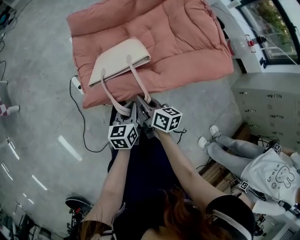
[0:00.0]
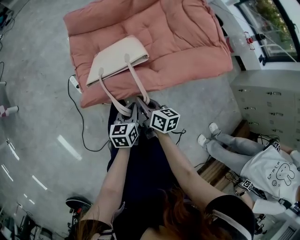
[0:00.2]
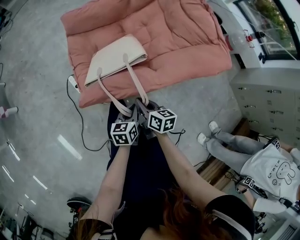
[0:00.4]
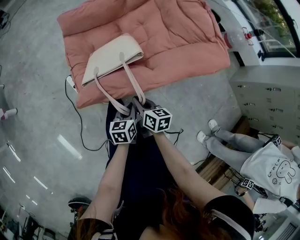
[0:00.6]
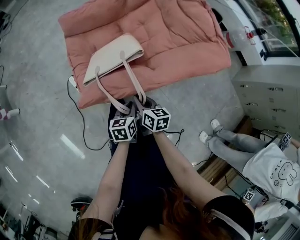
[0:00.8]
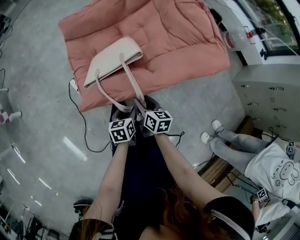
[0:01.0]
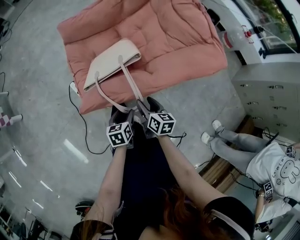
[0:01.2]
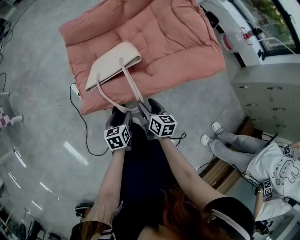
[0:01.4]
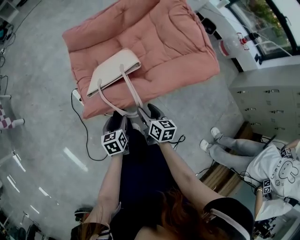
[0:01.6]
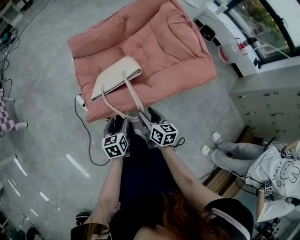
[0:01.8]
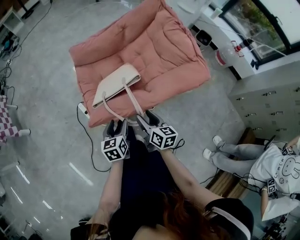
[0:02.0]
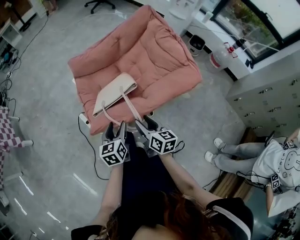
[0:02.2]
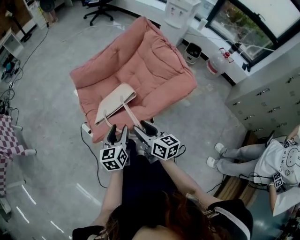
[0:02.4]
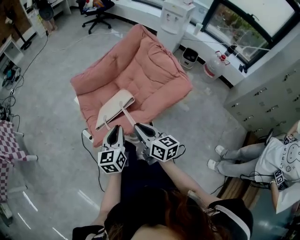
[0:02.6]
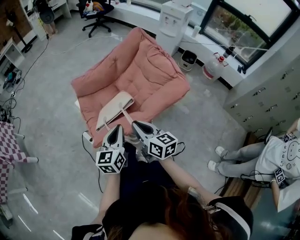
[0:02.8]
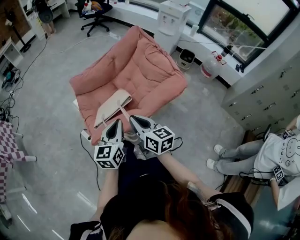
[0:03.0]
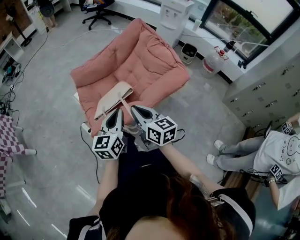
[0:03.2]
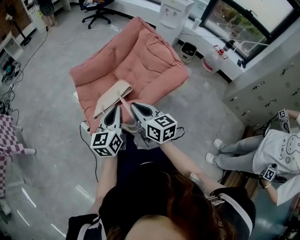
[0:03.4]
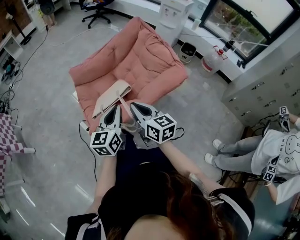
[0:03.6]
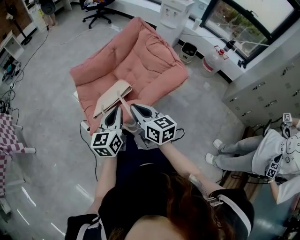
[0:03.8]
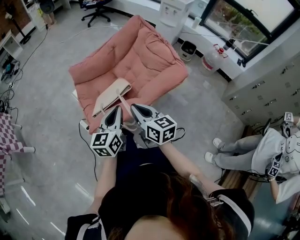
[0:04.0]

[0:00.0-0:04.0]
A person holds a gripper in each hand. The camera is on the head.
0:00.0 to 0:01.4: The left gripper shifts roughly 5 cm downward, and opens up, while the right gripper shifts roughly 5 cm to the right, and opens.
0:01.4 to 0:02.6: Both grippers travel together upward, approximately 30 cm. The right gripper turns by some 20 degrees, and closes up. The left gripper changes its angle by some 30 degrees, and closes its fingers.
0:02.6 to 0:04.0: The left gripper shifts by some 5 cm.

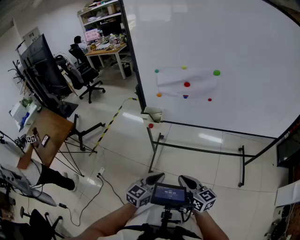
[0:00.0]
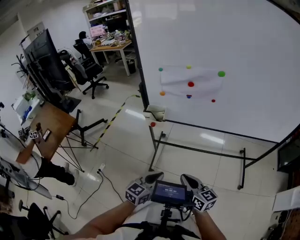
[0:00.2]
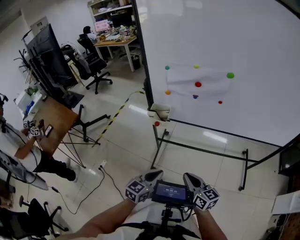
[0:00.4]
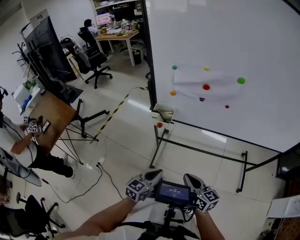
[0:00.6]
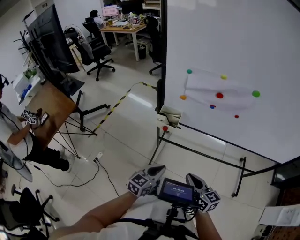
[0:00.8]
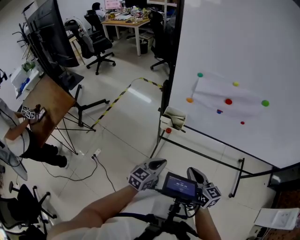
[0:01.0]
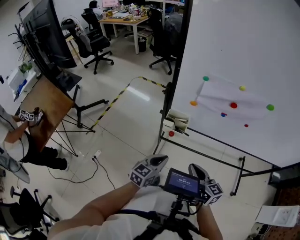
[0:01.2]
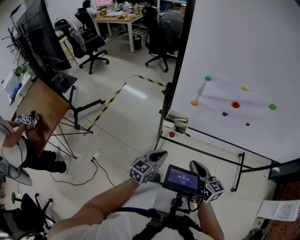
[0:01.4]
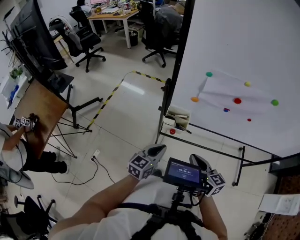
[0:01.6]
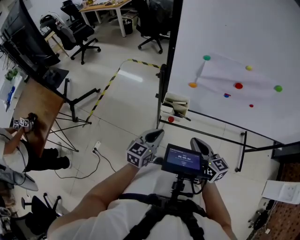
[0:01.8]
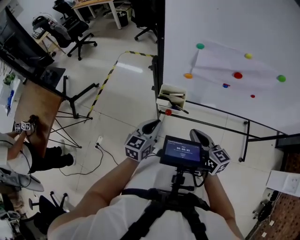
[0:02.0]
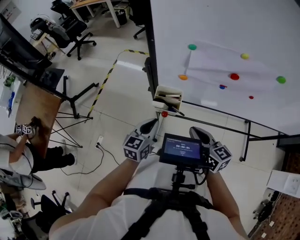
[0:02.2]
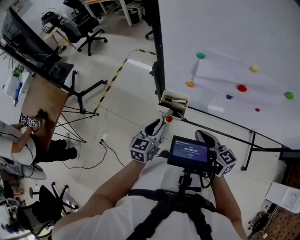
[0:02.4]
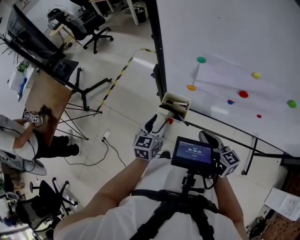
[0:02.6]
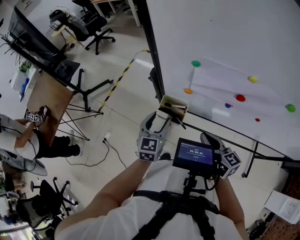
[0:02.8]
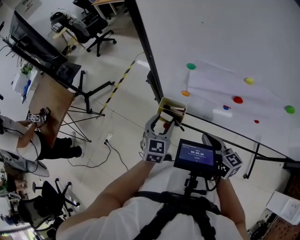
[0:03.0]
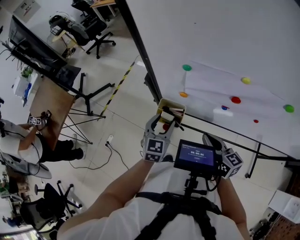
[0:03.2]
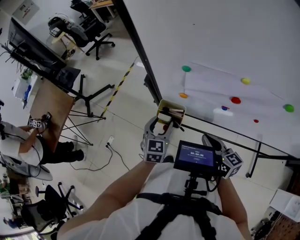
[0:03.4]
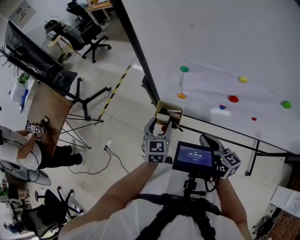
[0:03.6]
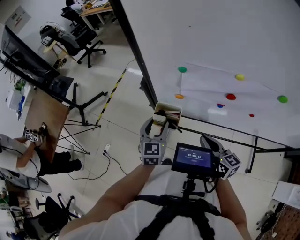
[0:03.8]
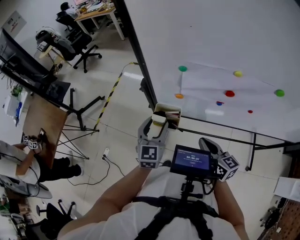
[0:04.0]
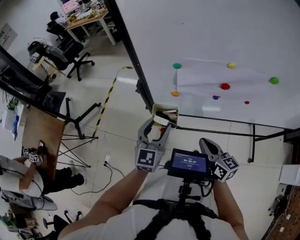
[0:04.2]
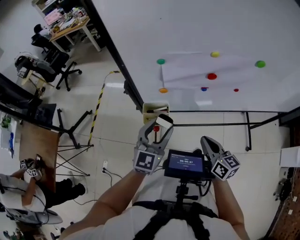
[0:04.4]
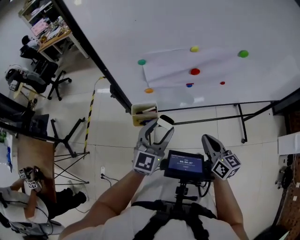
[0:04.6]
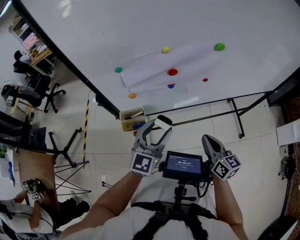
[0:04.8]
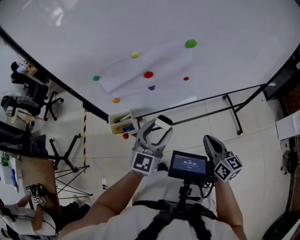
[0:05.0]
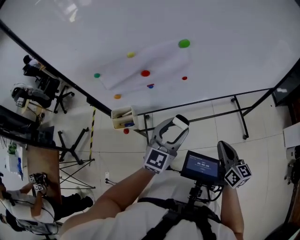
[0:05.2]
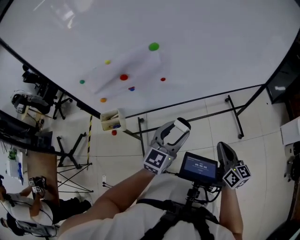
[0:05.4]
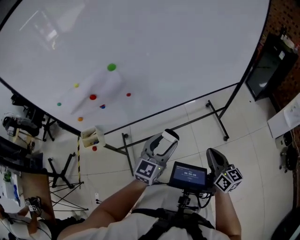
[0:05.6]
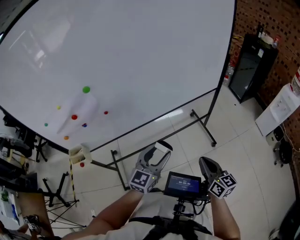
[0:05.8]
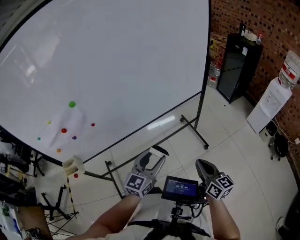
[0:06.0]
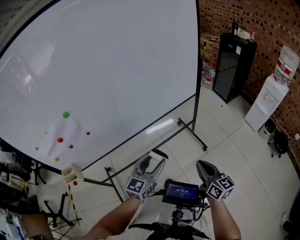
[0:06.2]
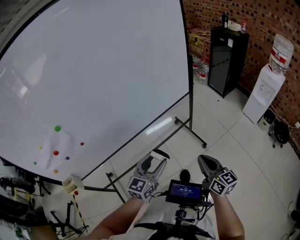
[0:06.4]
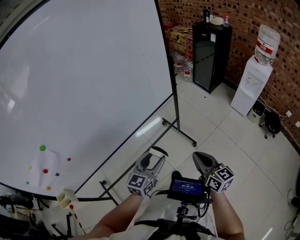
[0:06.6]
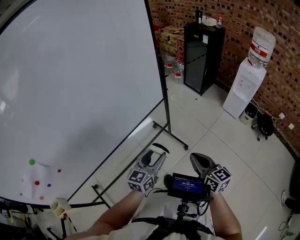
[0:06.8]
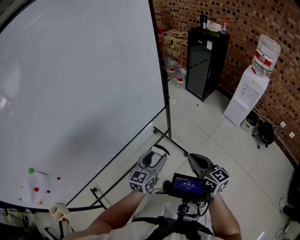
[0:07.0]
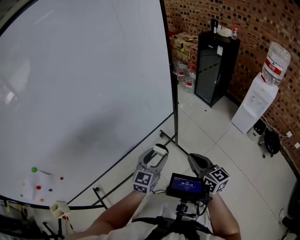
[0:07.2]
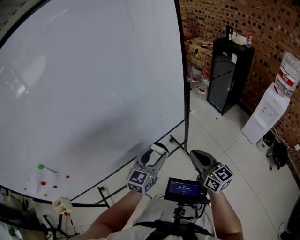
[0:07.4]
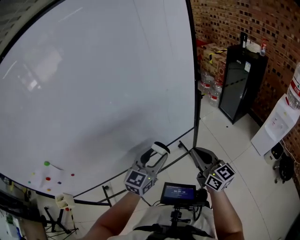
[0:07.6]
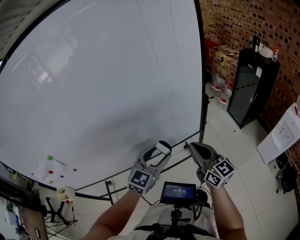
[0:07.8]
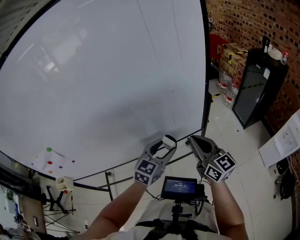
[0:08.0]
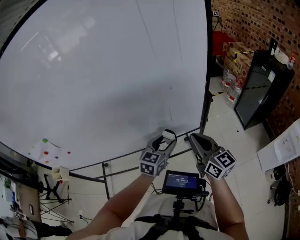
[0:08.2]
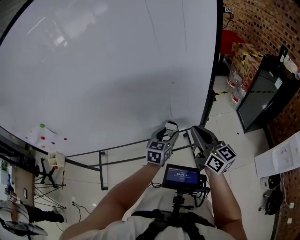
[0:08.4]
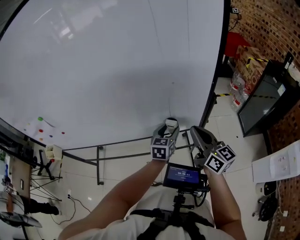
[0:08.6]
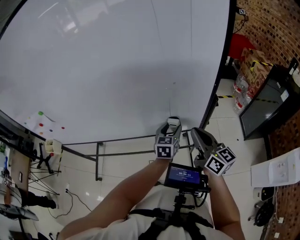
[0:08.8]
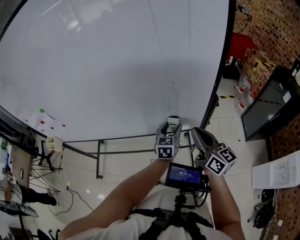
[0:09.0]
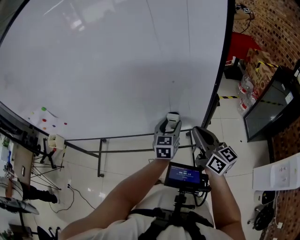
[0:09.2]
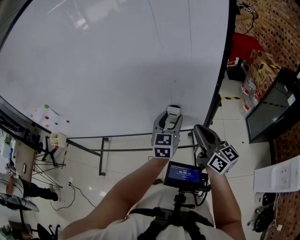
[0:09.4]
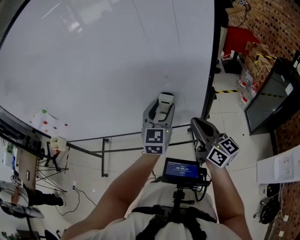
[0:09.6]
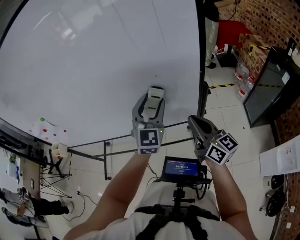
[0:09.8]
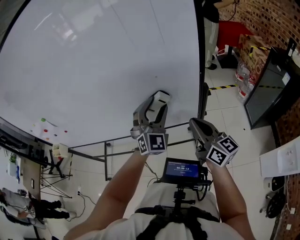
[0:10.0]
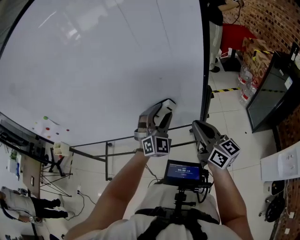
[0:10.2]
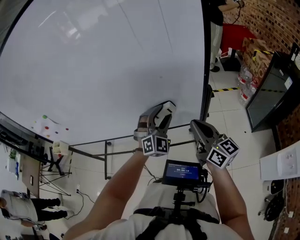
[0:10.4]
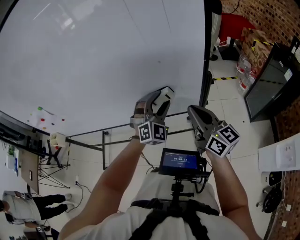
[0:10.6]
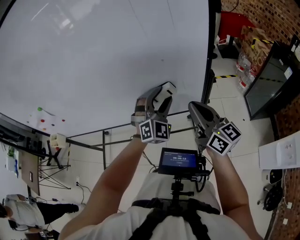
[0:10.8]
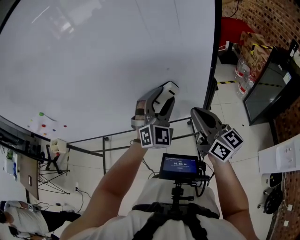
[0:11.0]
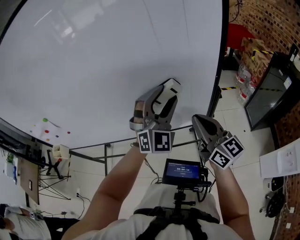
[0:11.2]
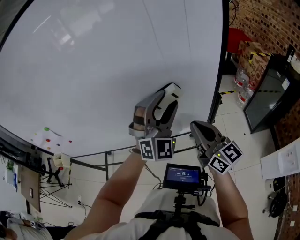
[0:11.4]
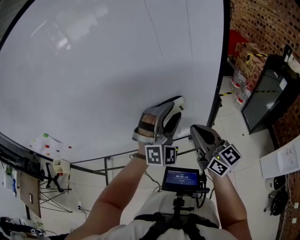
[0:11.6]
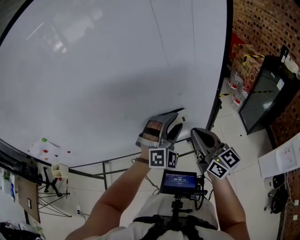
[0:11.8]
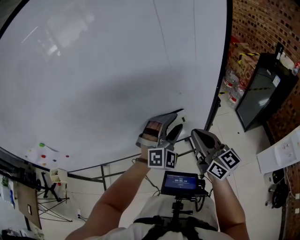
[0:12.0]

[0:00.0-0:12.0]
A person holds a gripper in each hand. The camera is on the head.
0:00.0 to 0:01.6: Both grippers move forward and to the left, roughly 30 cm.
0:01.6 to 0:03.0: Both grippers move forward and to the right, roughly 15 cm. The left gripper turns by about 30 degrees, and opens up.
0:03.0 to 0:04.4: The right gripper moves some 10 cm, and rotates approximately 20 degrees, while the left gripper is displaced upward by about 10 cm, and turns by some 30 degrees.
0:04.4 to 0:06.0: Both grippers are carried some 70 cm. The right gripper changes its angle by roughly 30 degrees; the left gripper swivels roughly 40 degrees.
0:06.0 to 0:07.6: The left gripper is displaced forward and to the right by some 40 cm, while the right gripper is displaced forward by some 35 cm.
0:07.6 to 0:09.0: The right gripper ends up about 20 cm from where it was, and changes its angle by about 30 degrees. Meanwhile the left gripper changes place by some 25 cm, and swivels about 50 degrees.
0:09.0 to 0:10.4: The left gripper goes roughly 10 cm upward, and rolls clockwise, seen from behind, by about 60 degrees.
0:10.4 to 0:12.0: The left gripper heads upward, covering roughly 5 cm, and rotates roughly 20 degrees; the right gripper travels to the left by some 10 cm.

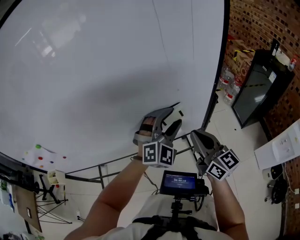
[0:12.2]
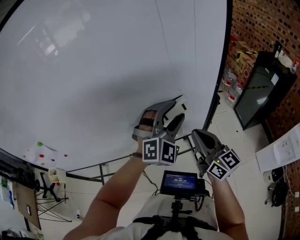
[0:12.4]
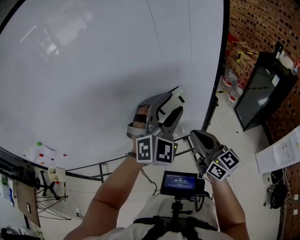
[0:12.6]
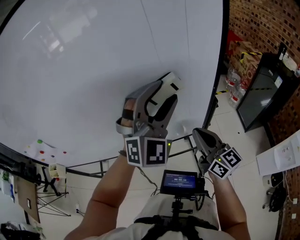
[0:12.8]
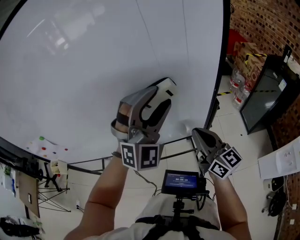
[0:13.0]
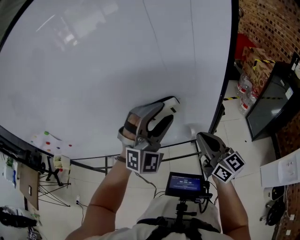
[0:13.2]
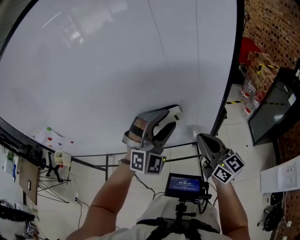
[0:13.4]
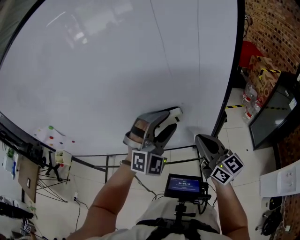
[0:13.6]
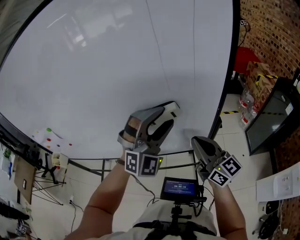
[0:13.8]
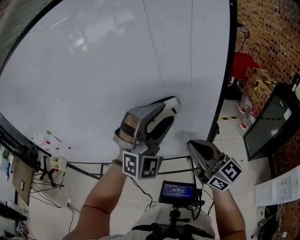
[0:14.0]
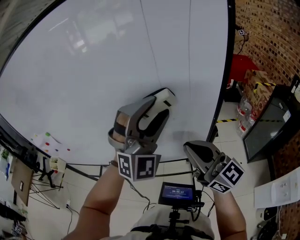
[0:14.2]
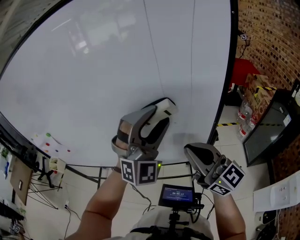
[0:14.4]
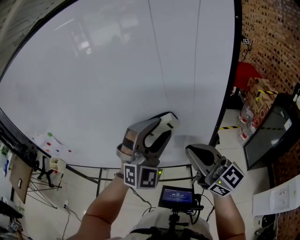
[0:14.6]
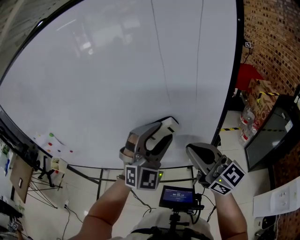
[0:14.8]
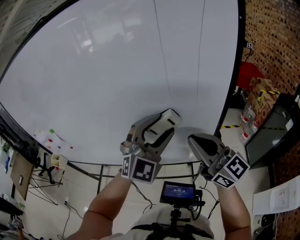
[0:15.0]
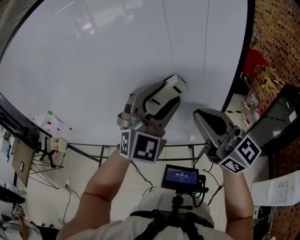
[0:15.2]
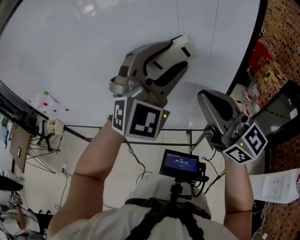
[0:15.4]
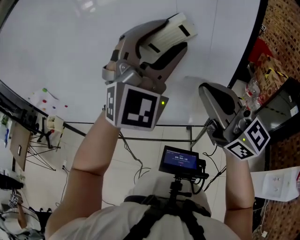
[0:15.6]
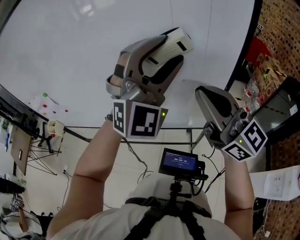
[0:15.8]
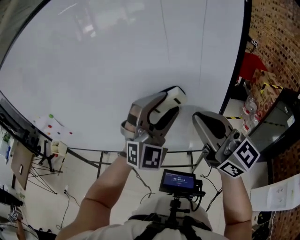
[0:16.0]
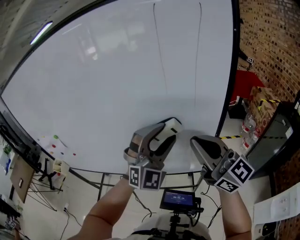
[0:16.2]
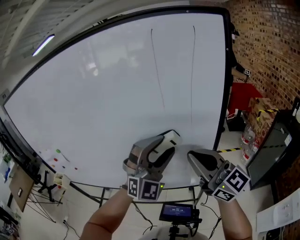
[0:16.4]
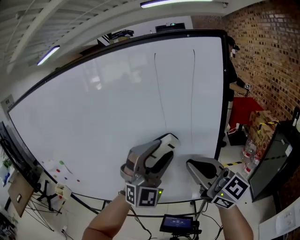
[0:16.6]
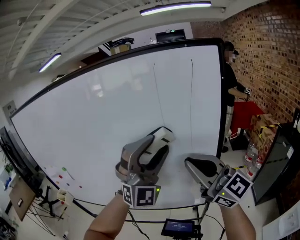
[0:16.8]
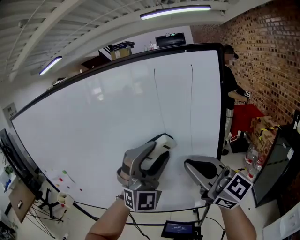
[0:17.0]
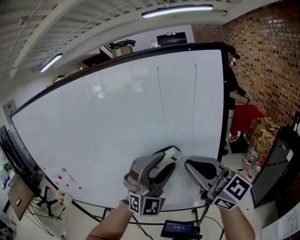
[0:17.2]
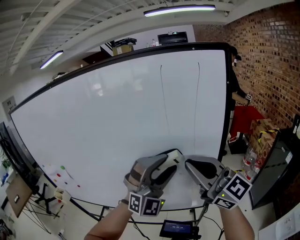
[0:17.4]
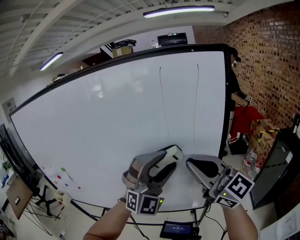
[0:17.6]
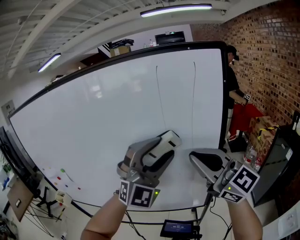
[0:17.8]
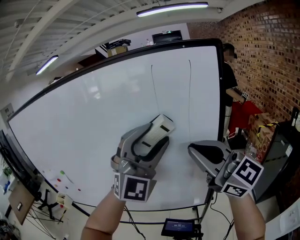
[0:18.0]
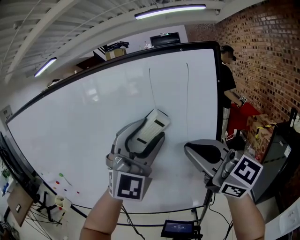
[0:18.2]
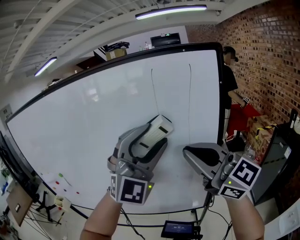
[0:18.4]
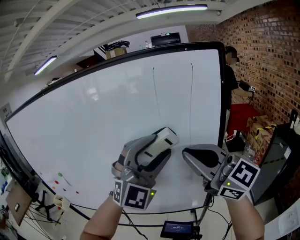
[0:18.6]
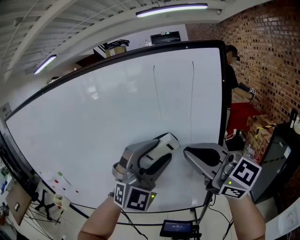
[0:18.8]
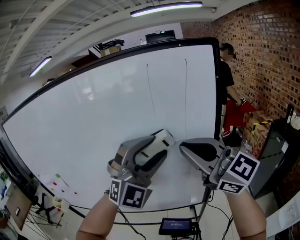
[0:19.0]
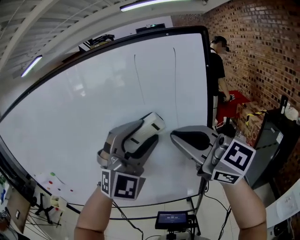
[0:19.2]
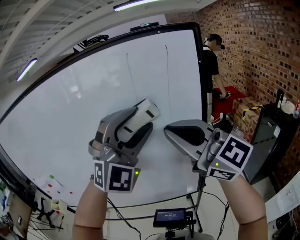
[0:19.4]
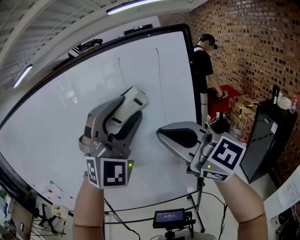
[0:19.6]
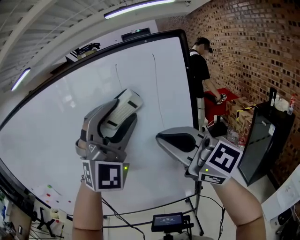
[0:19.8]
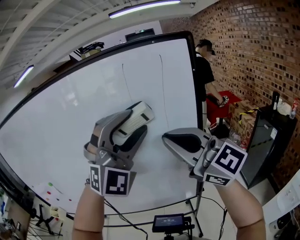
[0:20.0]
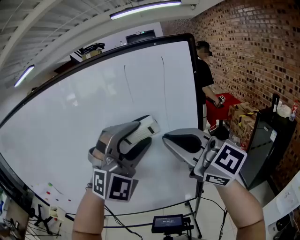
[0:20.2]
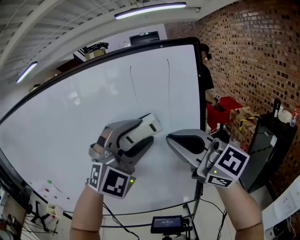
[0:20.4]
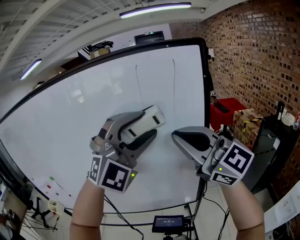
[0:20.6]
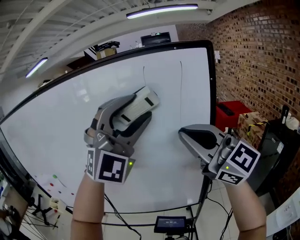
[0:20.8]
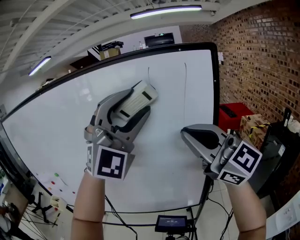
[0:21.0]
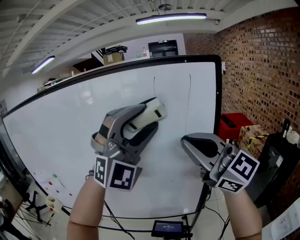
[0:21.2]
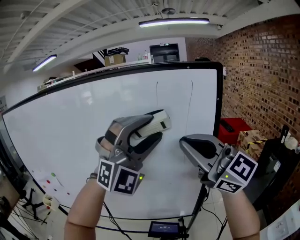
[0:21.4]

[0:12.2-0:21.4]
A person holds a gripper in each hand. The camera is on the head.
0:12.2 to 0:13.8: The right gripper moves to the right, some 5 cm. Meanwhile the left gripper goes up and down, roughly 15 cm each way, reversing 2 times, and swivels about 20 degrees.
0:13.8 to 0:15.2: The left gripper goes up and down, some 10 cm each way, reversing 2 times; the right gripper heads upward, covering some 15 cm.
0:15.2 to 0:16.8: The left gripper swings up and down, roughly 15 cm each way, with 2 reversals, and changes its angle by about 30 degrees. Meanwhile the right gripper is displaced upward by about 10 cm.
0:16.8 to 0:18.4: Both grippers travel together upward, approximately 5 cm.
0:18.4 to 0:19.8: The left gripper travels upward by about 5 cm.
0:19.8 to 0:21.4: The right gripper travels upward by some 5 cm, while the left gripper swings up and down, about 10 cm each way, with 2 reversals.
